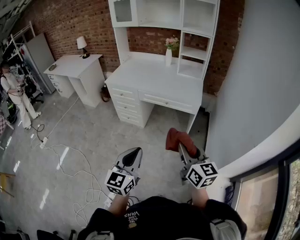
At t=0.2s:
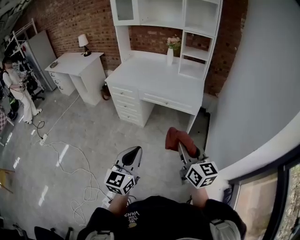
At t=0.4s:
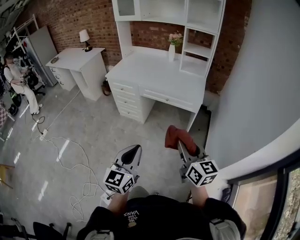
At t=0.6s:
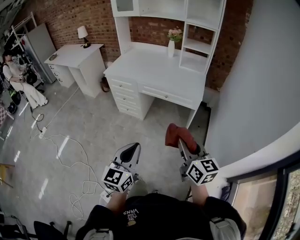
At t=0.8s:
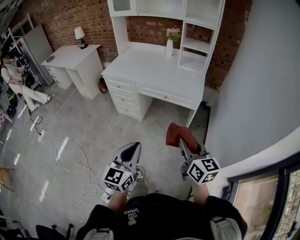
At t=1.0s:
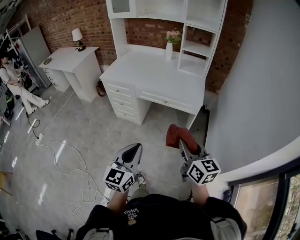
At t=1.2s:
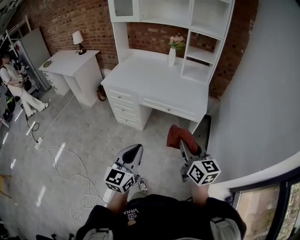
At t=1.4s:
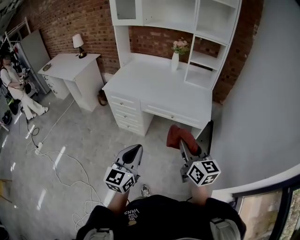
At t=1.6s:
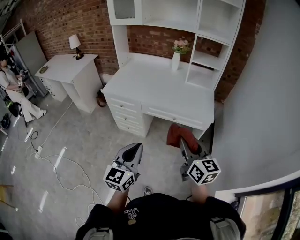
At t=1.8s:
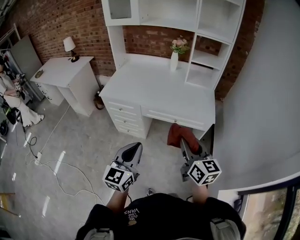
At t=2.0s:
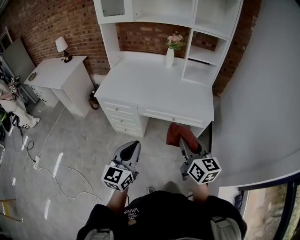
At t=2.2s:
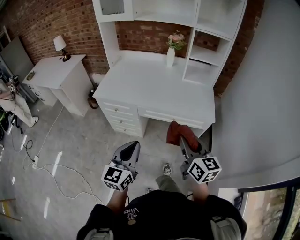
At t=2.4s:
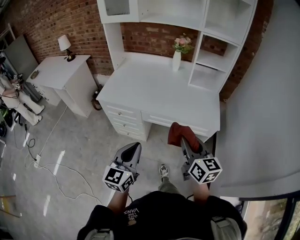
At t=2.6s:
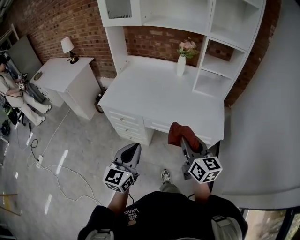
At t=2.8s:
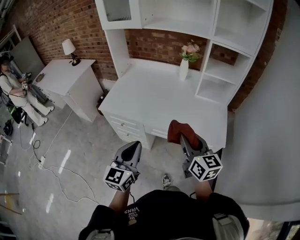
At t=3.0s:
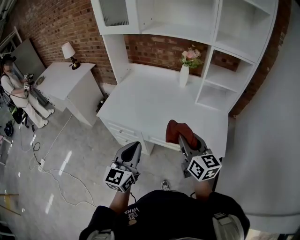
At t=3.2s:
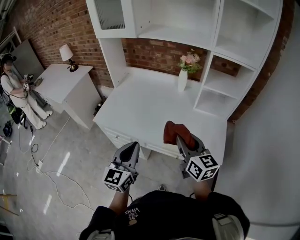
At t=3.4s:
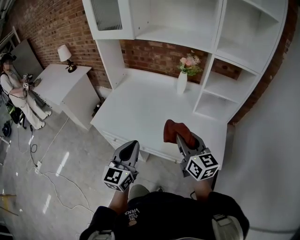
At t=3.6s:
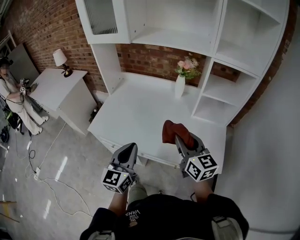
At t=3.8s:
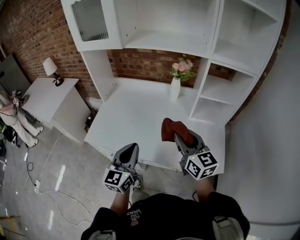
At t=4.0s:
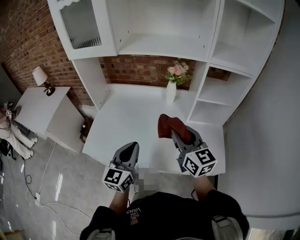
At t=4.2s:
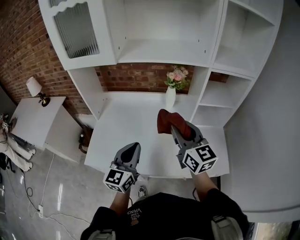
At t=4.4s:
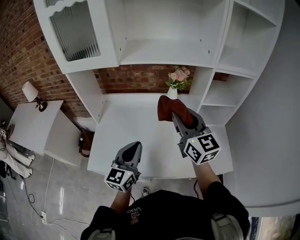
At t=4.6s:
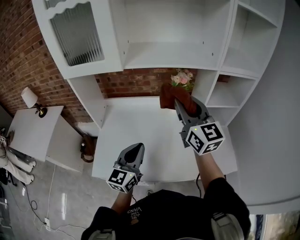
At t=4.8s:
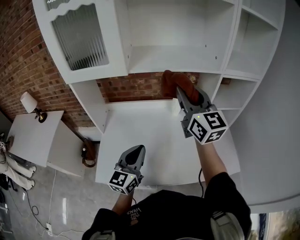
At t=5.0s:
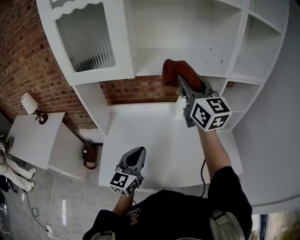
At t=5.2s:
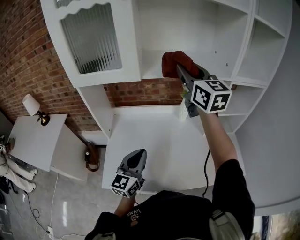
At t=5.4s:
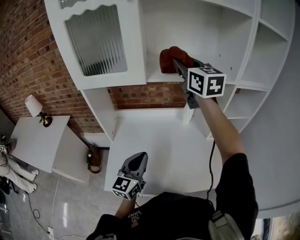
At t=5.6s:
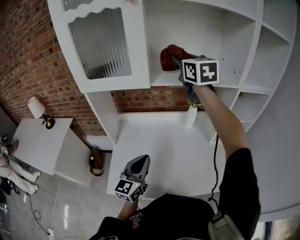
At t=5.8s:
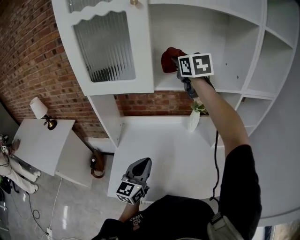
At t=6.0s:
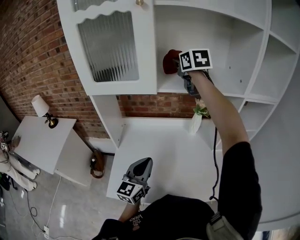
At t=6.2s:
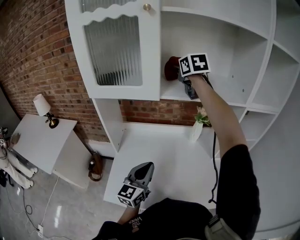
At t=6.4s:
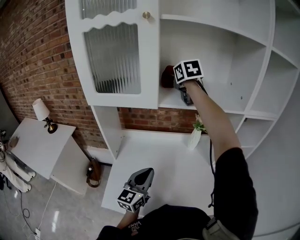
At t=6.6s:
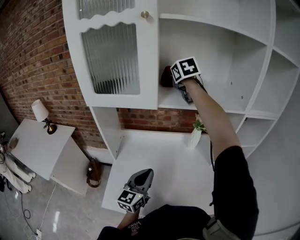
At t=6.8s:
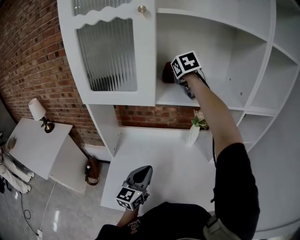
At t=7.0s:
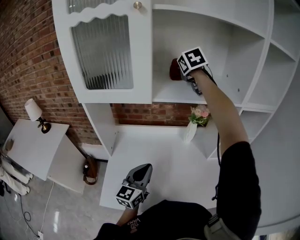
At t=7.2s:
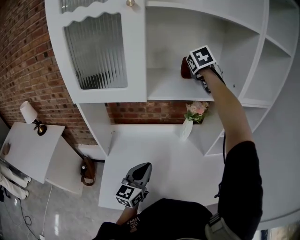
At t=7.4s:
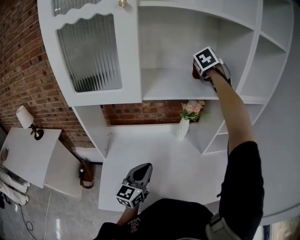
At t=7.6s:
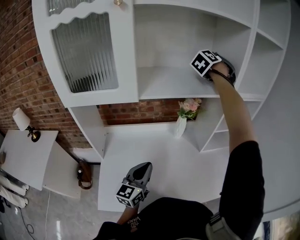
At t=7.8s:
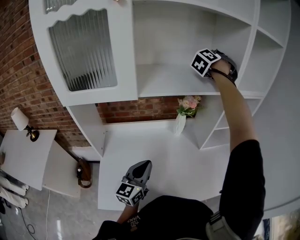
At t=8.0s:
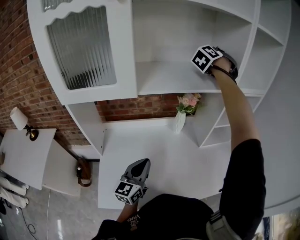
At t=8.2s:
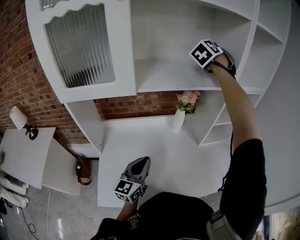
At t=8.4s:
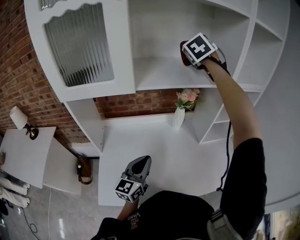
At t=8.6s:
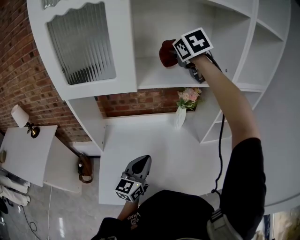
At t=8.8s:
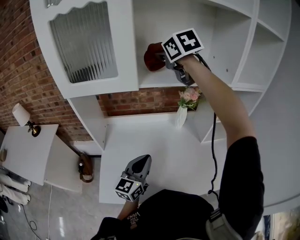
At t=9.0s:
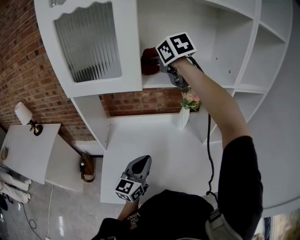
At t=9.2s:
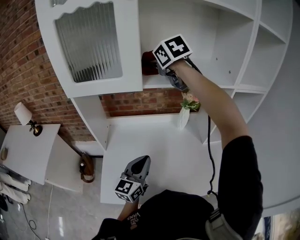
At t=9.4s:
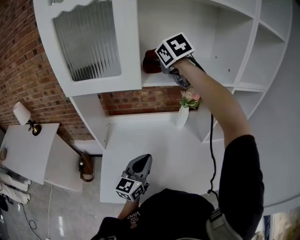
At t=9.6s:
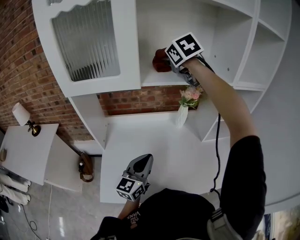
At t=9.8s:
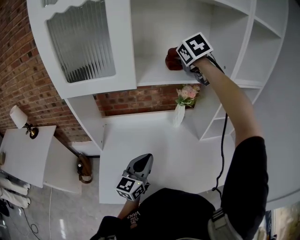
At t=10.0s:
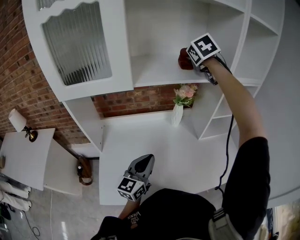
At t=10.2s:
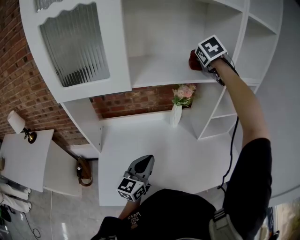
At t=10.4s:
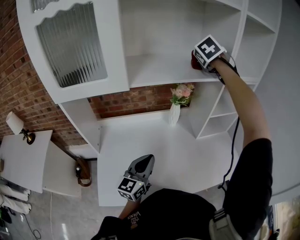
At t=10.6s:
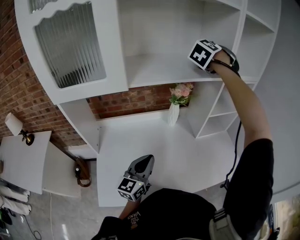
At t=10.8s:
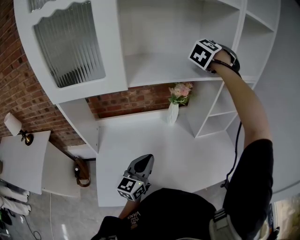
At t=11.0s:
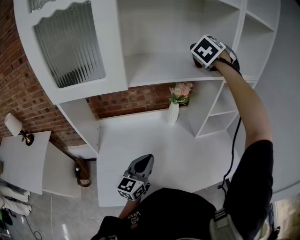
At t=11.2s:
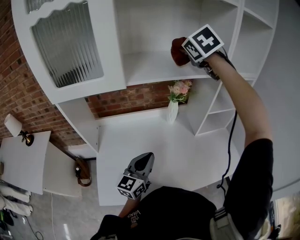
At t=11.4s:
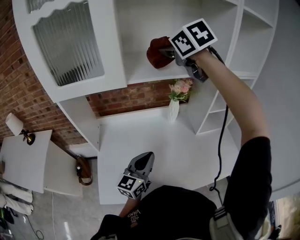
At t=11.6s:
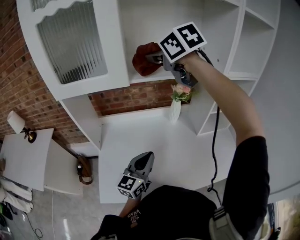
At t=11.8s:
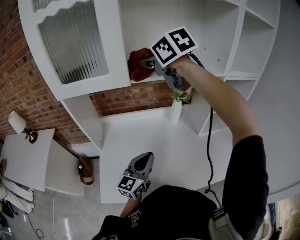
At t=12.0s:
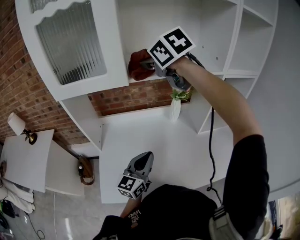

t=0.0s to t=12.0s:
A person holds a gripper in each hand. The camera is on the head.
t=0.0s to t=1.6s: Both grippers move forward, approximately 25 cm.
t=1.6s to t=3.0s: Both grippers travel together forward, some 30 cm.
t=3.0s to t=4.4s: Both grippers move forward, approximately 30 cm. The right gripper swivels about 20 degrees.
t=4.4s to t=6.0s: The left gripper shifts about 15 cm to the left and forward. Meanwhile the right gripper is displaced forward, to the left and upward by some 40 cm, and turns by approximately 20 degrees.
t=6.0s to t=7.6s: The left gripper ends up about 5 cm from where it was. The right gripper shifts by roughly 25 cm, and rotates some 70 degrees.
t=7.6s to t=9.0s: The right gripper changes place by roughly 25 cm, and turns by about 60 degrees.
t=9.0s to t=10.4s: The right gripper ends up some 25 cm from where it was, and swivels approximately 40 degrees.
t=10.4s to t=12.0s: The right gripper ends up about 25 cm from where it was, and rotates approximately 40 degrees.

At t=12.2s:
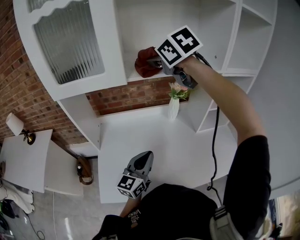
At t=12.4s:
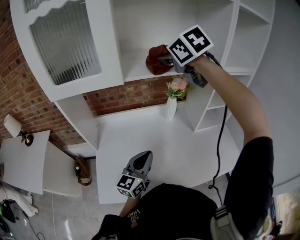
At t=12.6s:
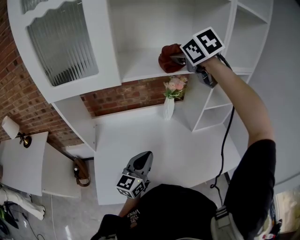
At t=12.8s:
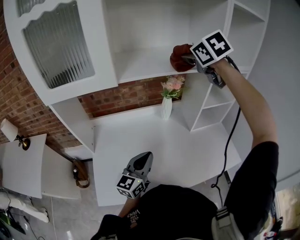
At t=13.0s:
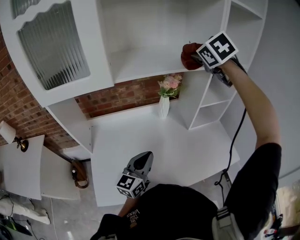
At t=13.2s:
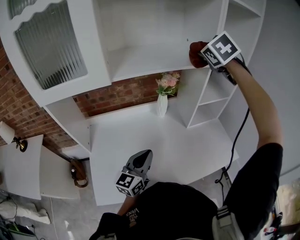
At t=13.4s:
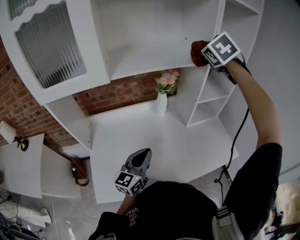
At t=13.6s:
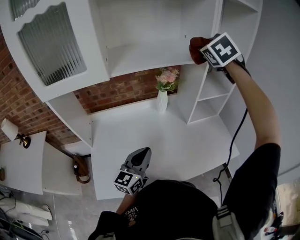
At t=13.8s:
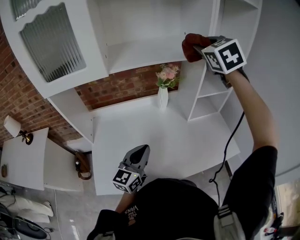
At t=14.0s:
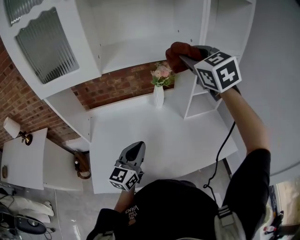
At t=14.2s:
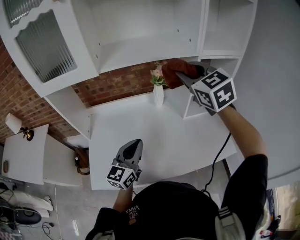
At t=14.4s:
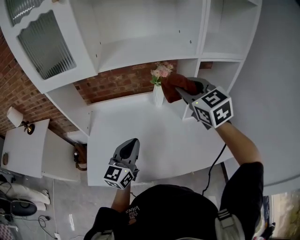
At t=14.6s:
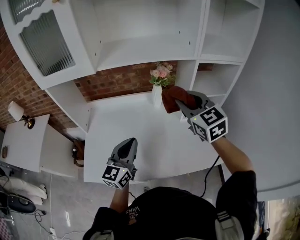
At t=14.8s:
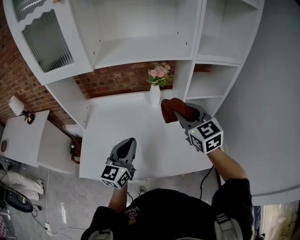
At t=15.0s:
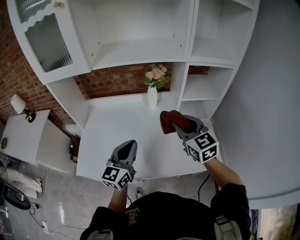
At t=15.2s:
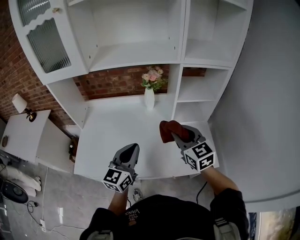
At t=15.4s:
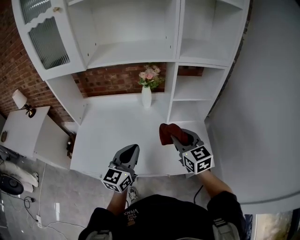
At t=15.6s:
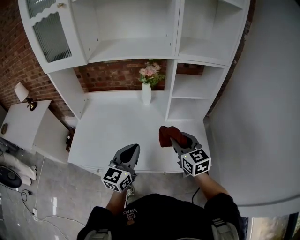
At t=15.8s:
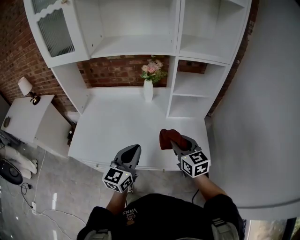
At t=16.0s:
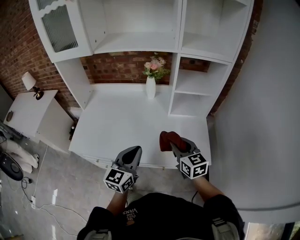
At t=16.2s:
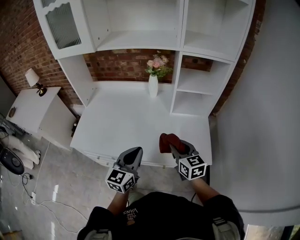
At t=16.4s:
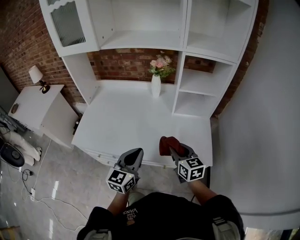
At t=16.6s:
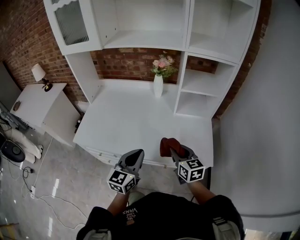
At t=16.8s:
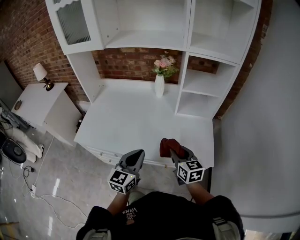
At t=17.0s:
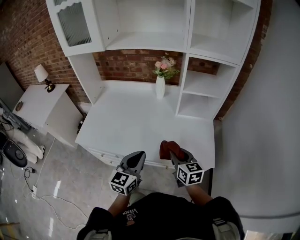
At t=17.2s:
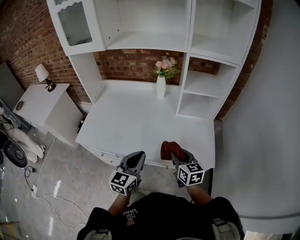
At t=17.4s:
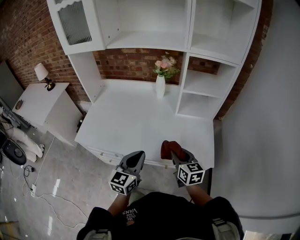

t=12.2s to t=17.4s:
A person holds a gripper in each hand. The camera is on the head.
t=12.2s to t=14.0s: The right gripper ends up approximately 20 cm from where it was, and turns by some 30 degrees. The left gripper changes place by about 5 cm.
t=14.0s to t=15.6s: The right gripper goes roughly 35 cm downward, backward and to the right, and rotates approximately 30 degrees. Meanwhile the left gripper heads to the right and backward, covering roughly 20 cm.
t=15.6s to t=17.4s: The right gripper shifts some 15 cm downward and backward. Meanwhile the left gripper is displaced backward and downward by some 10 cm.

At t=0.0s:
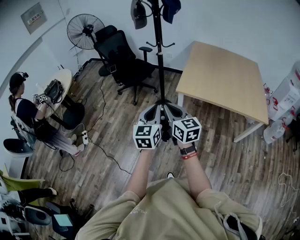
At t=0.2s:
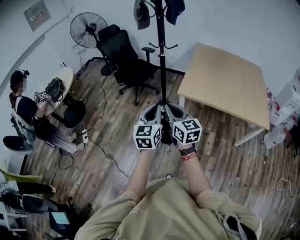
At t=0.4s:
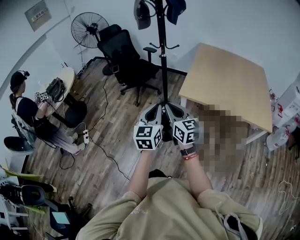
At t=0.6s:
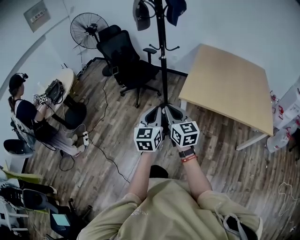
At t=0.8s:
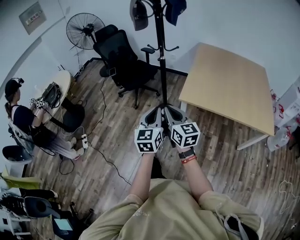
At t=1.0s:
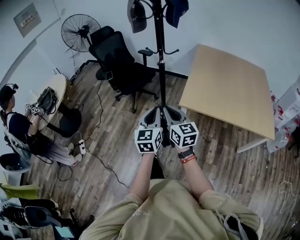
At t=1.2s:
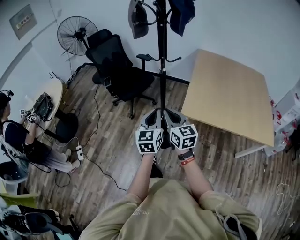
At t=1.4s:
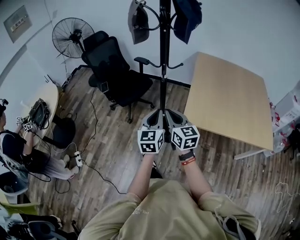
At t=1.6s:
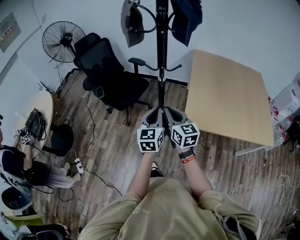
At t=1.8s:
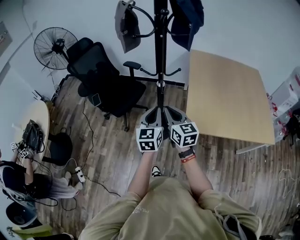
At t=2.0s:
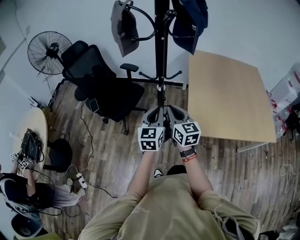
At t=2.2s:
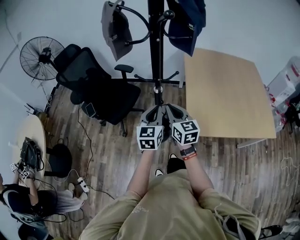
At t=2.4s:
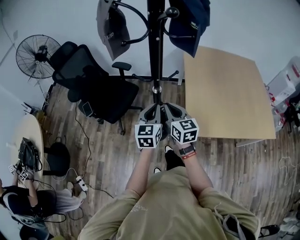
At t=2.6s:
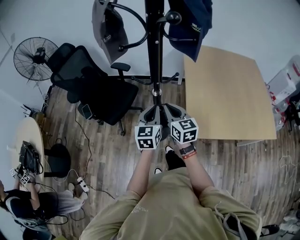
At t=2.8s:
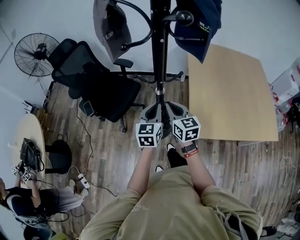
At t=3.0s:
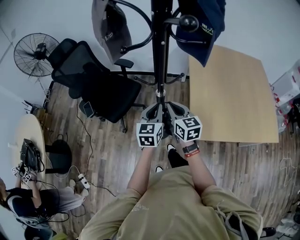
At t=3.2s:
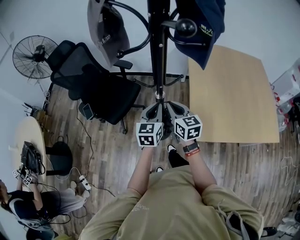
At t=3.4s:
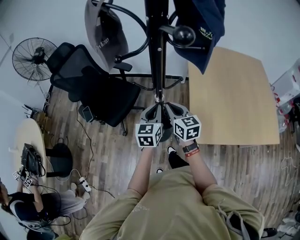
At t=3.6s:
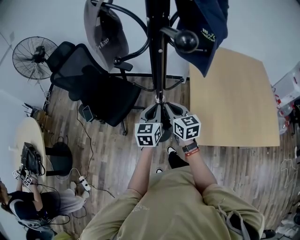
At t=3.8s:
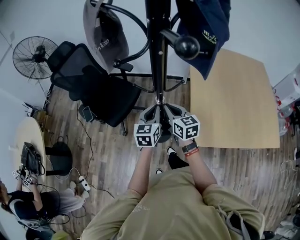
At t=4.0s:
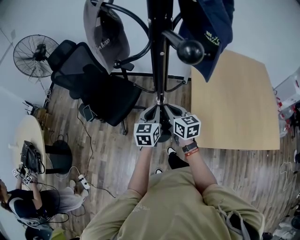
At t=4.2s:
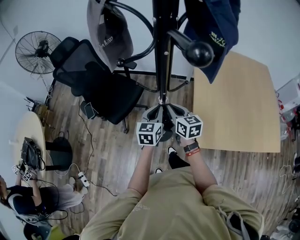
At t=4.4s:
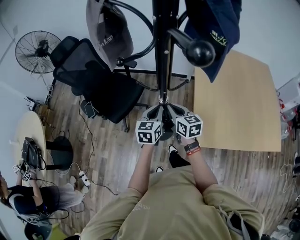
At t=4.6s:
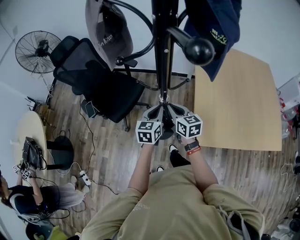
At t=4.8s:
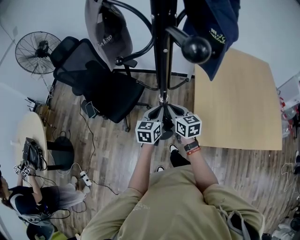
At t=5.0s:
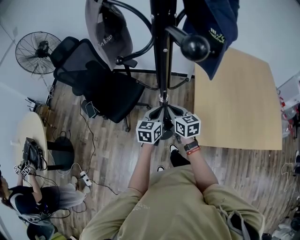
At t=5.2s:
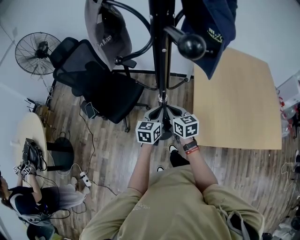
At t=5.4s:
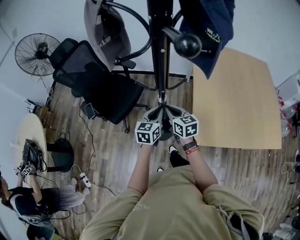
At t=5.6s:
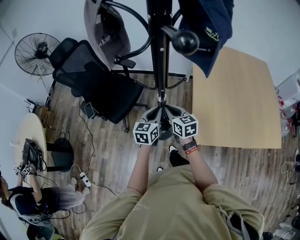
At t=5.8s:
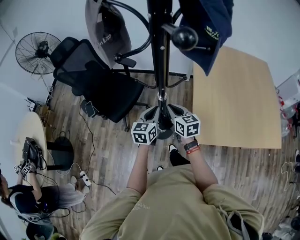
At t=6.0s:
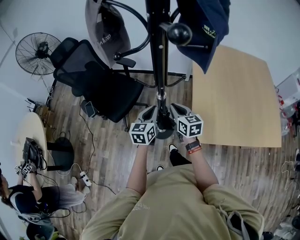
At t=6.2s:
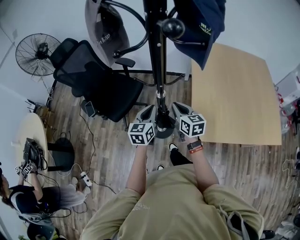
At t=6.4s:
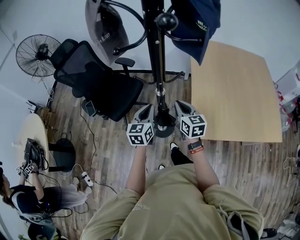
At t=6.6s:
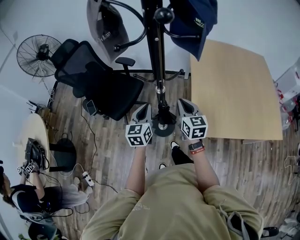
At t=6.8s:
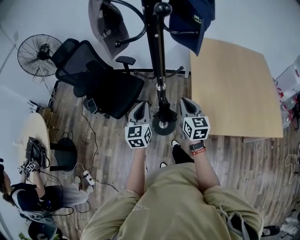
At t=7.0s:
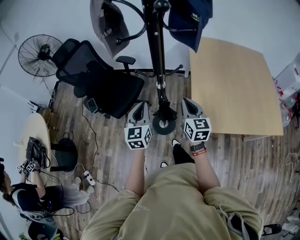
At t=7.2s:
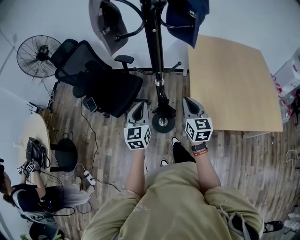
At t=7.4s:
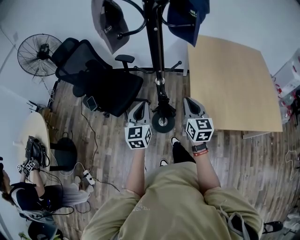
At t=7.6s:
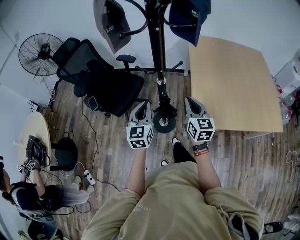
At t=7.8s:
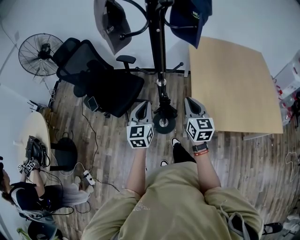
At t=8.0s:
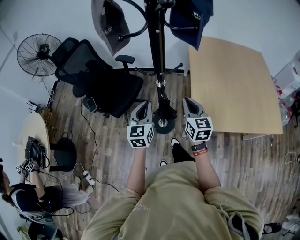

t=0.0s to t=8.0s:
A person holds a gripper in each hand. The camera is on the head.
t=0.0s to t=1.6s: The pair of grippers is taken forward, about 40 cm.
t=1.6s to t=3.2s: Both grippers travel together forward, about 25 cm.
t=3.2s to t=4.8s: The grippers both shift downward by approximately 5 cm.
t=4.8s to t=6.4s: The right gripper is displaced to the right by roughly 5 cm, while the left gripper ends up some 5 cm from where it was.
t=6.4s to t=8.0s: Both grippers move backward, approximately 5 cm.
